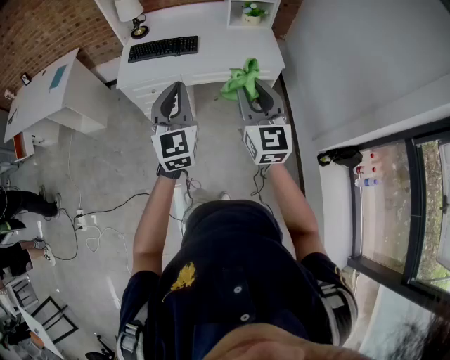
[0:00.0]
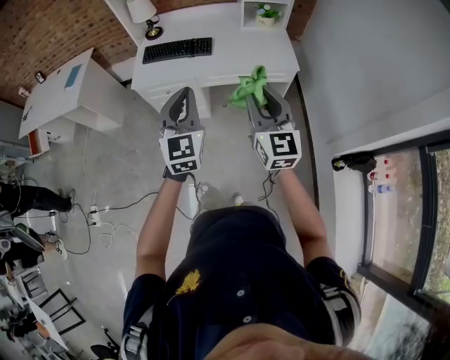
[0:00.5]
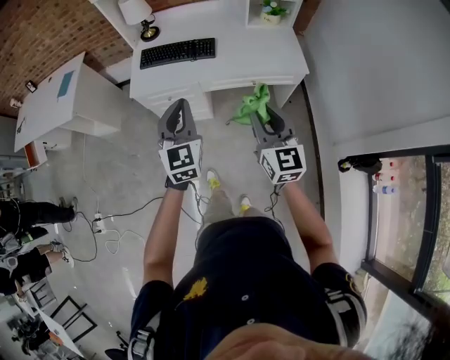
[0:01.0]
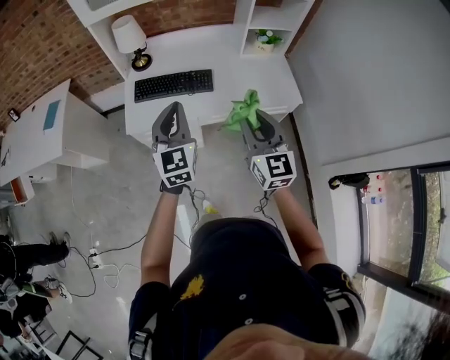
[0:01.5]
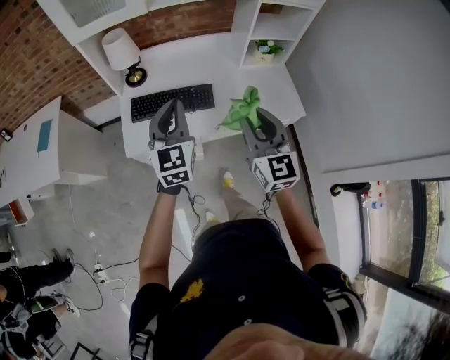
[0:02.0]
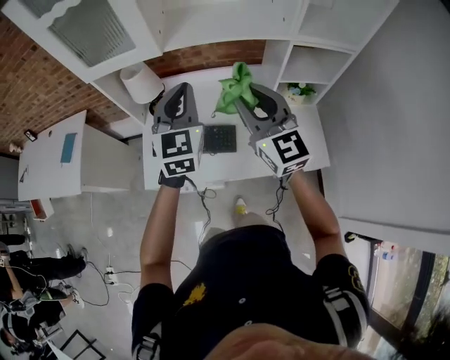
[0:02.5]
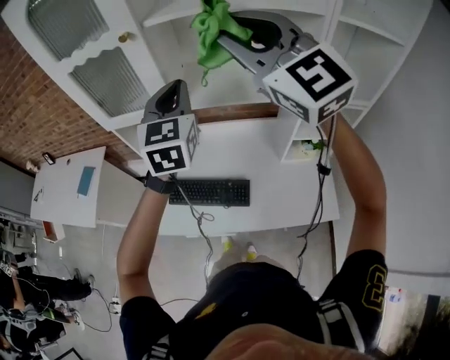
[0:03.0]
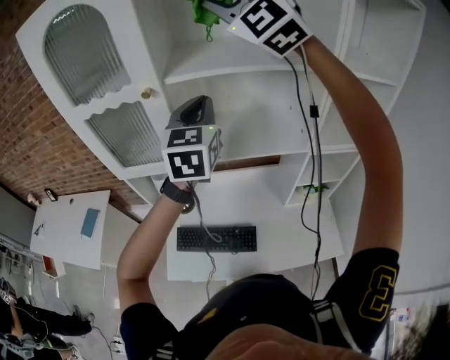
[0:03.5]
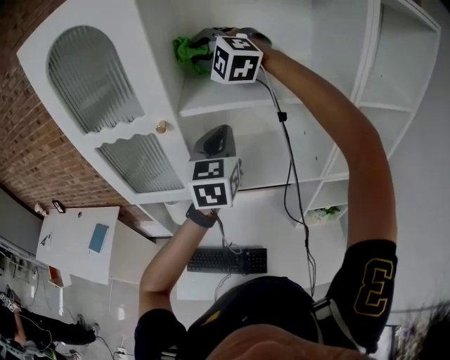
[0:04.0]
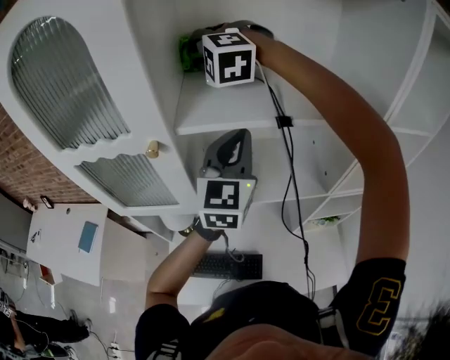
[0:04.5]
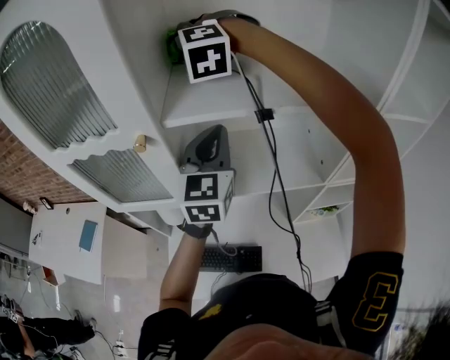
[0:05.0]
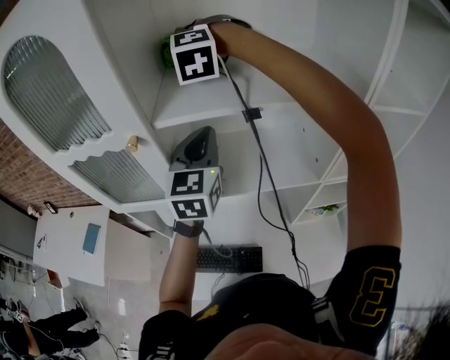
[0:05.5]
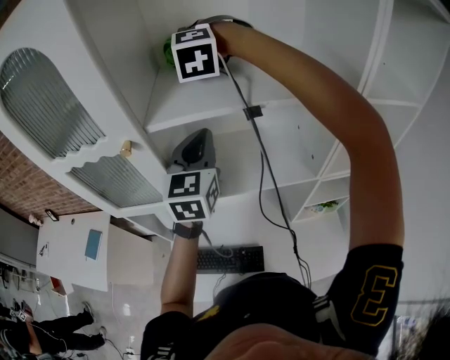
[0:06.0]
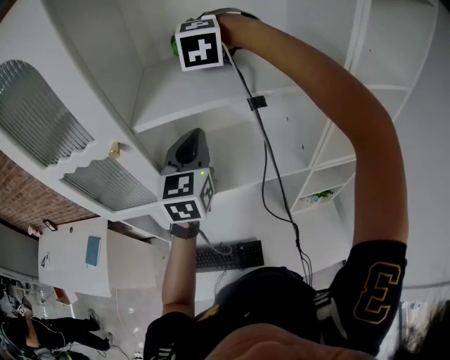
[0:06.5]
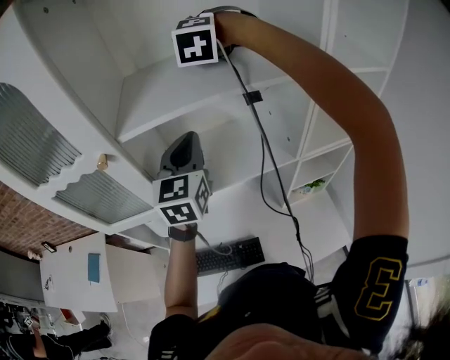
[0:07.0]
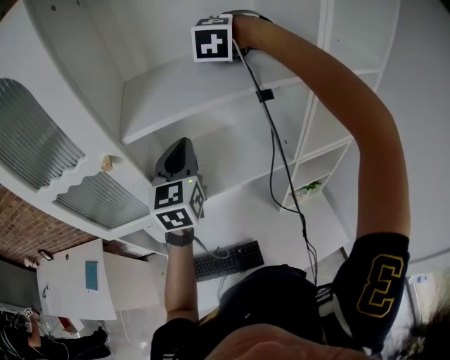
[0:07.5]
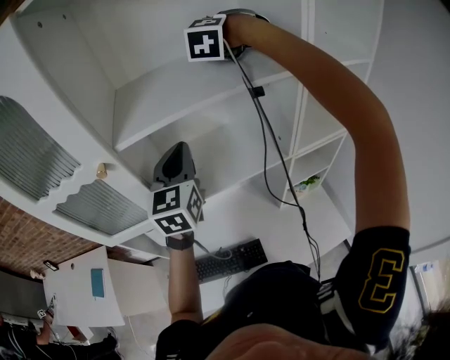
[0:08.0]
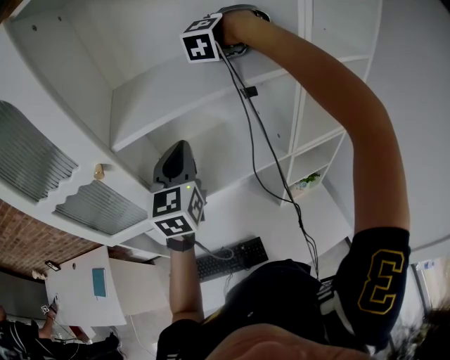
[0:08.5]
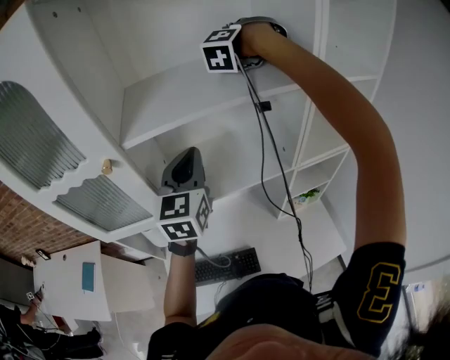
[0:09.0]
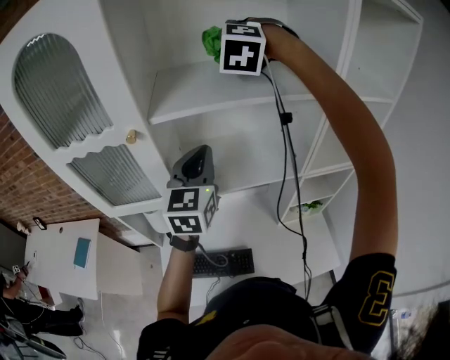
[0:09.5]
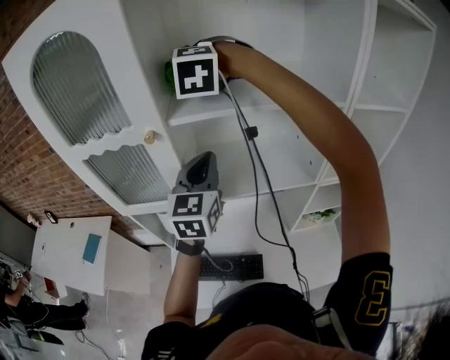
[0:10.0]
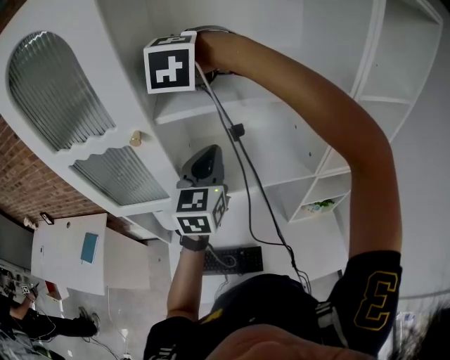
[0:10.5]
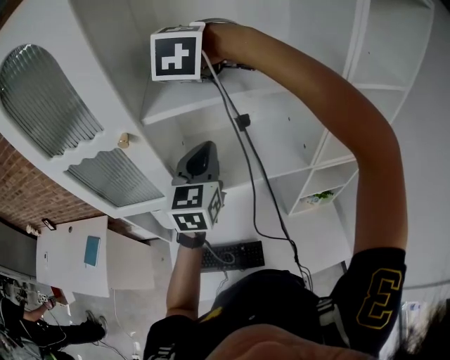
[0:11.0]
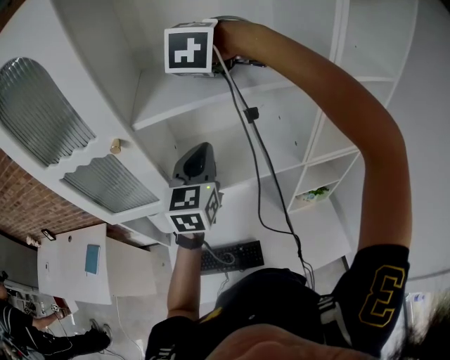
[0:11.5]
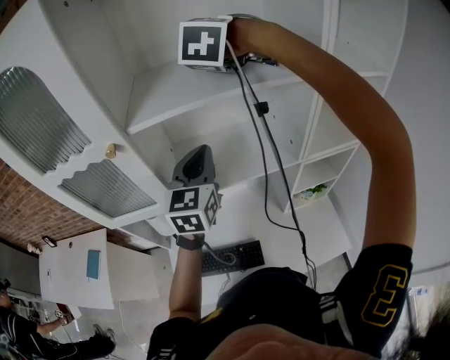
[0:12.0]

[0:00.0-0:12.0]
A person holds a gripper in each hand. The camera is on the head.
0:00.0 to 0:02.0: Both grippers travel together forward, about 35 cm.
0:02.0 to 0:04.0: The pair of grippers is taken forward, roughly 50 cm. The two grippers go some 35 cm upward. The right gripper rolls counterclockwise, seen from behind, by approximately 80 degrees.
0:04.0 to 0:06.0: The left gripper shifts by about 5 cm. The right gripper goes some 10 cm forward and downward, and turns by approximately 20 degrees.
0:06.0 to 0:08.0: The right gripper travels to the right by roughly 20 cm, and swivels some 30 degrees.
0:08.0 to 0:10.0: The left gripper shifts by approximately 5 cm; the right gripper changes place by some 25 cm, and changes its angle by approximately 40 degrees.
0:10.0 to 0:12.0: The right gripper shifts roughly 20 cm to the right, and changes its angle by approximately 30 degrees; the left gripper travels to the right by roughly 5 cm.

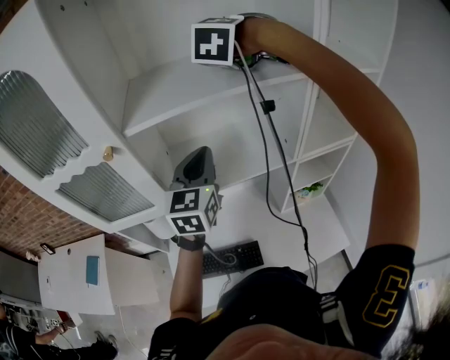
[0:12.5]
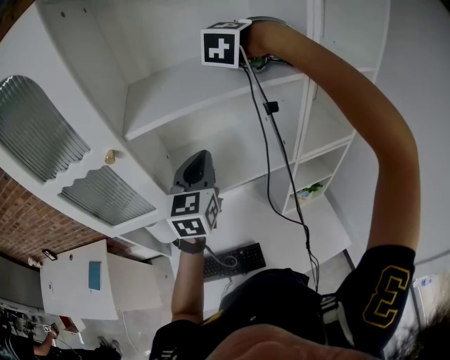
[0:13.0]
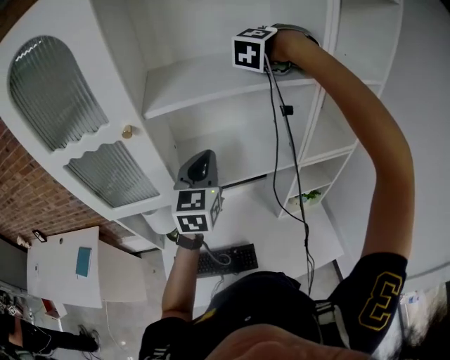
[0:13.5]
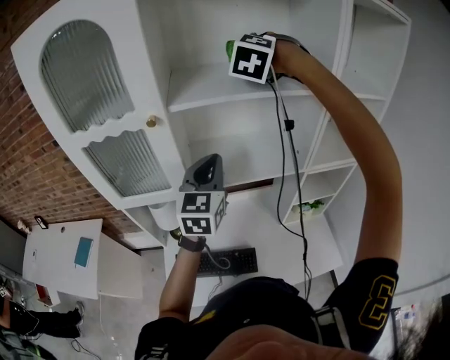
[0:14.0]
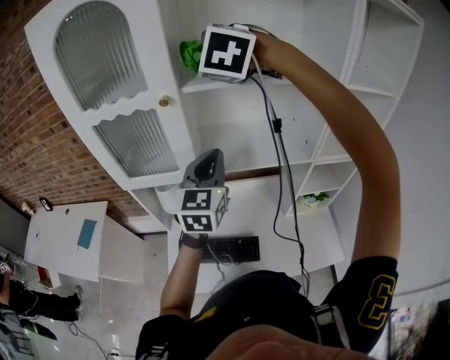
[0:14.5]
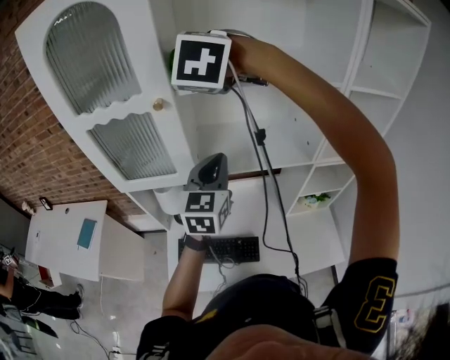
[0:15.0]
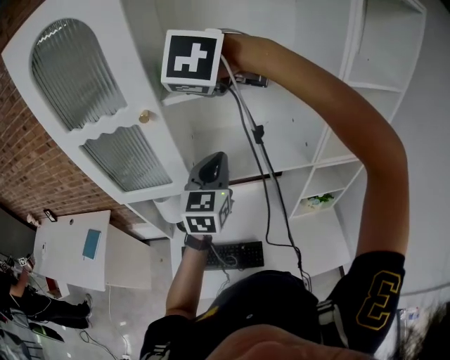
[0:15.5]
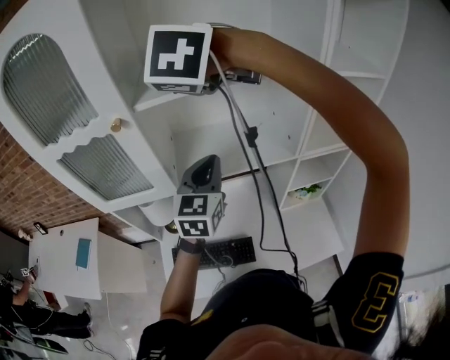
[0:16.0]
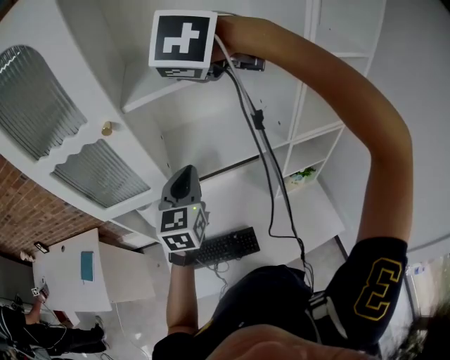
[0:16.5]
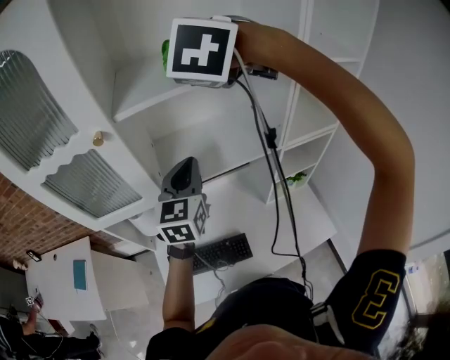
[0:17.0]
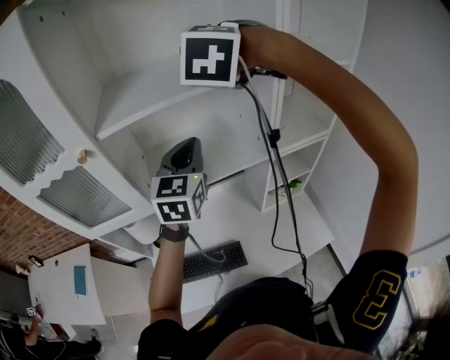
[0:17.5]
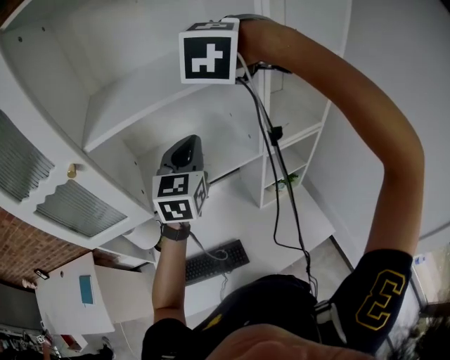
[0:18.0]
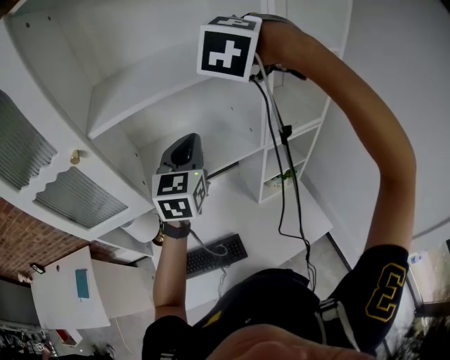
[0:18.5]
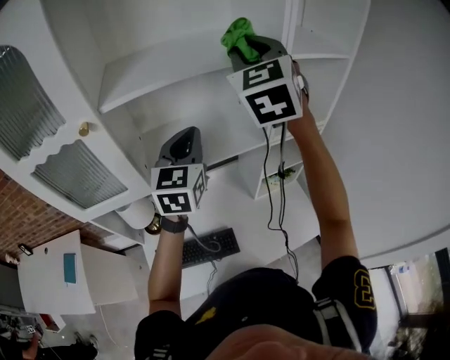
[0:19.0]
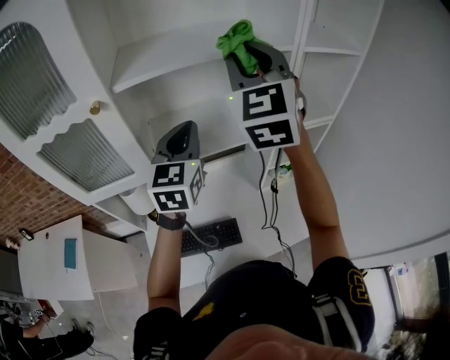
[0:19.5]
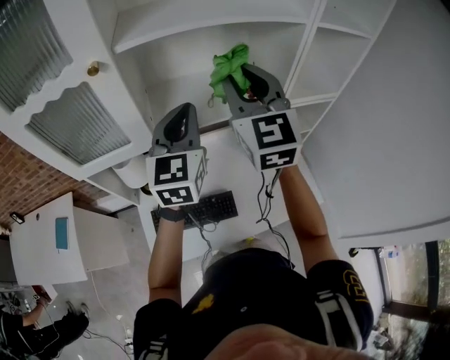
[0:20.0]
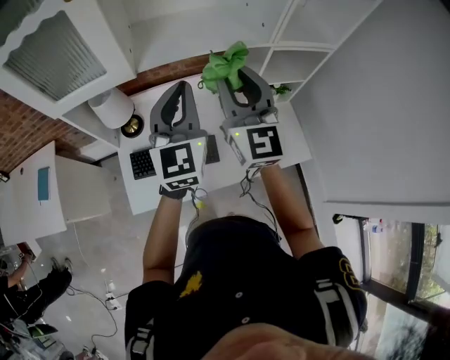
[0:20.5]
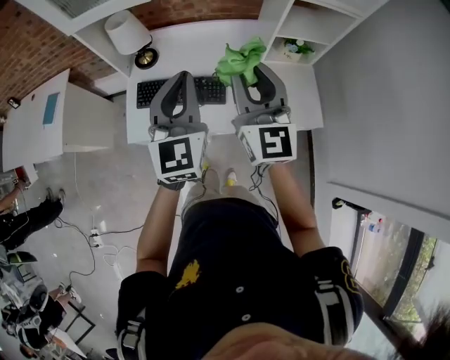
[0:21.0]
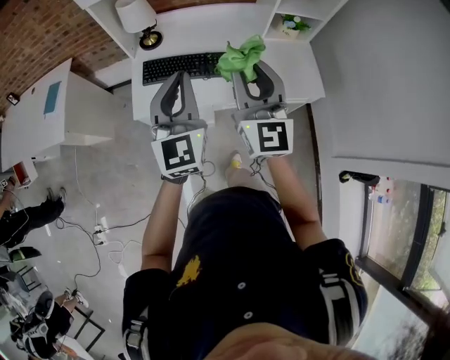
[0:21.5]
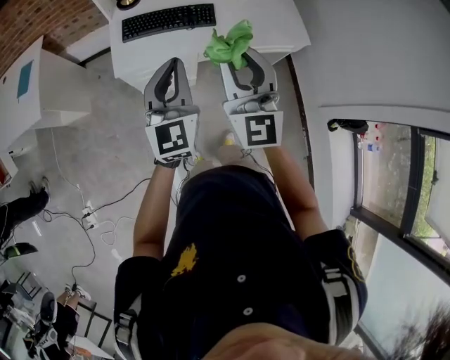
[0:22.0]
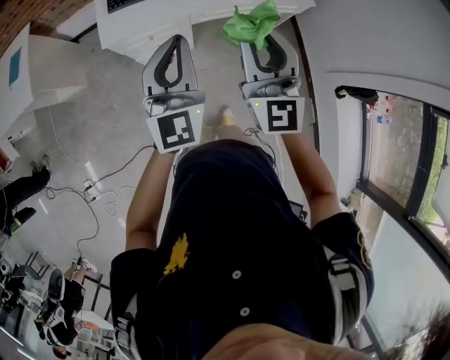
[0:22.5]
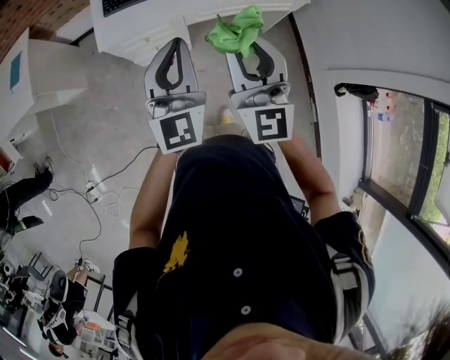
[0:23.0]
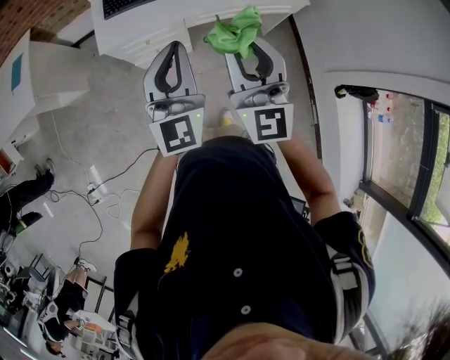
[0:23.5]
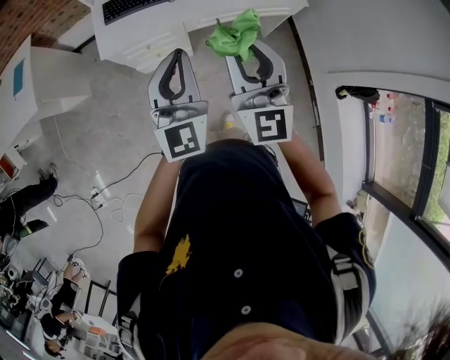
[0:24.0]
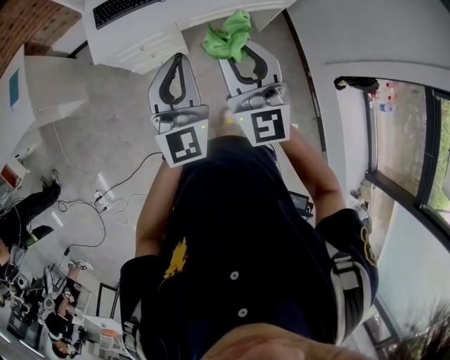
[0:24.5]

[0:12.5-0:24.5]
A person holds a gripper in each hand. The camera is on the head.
0:12.5 to 0:14.5: The left gripper changes place by some 10 cm. The right gripper changes place by approximately 25 cm, and swivels roughly 30 degrees.
0:14.5 to 0:16.5: The right gripper moves to the right, about 5 cm, while the left gripper travels downward by about 5 cm.
0:16.5 to 0:18.5: The left gripper travels to the right, forward and upward by roughly 15 cm, while the right gripper shifts about 20 cm to the right, and turns by approximately 30 degrees.
0:18.5 to 0:20.5: The right gripper shifts about 35 cm downward and backward, and points its fingers some 40 degrees further upward; the left gripper shifts about 20 cm backward and downward.
0:20.5 to 0:22.5: The pair of grippers is taken backward, some 50 cm.
0:22.5 to 0:24.5: The grippers stay close to where they were, moving slightly.

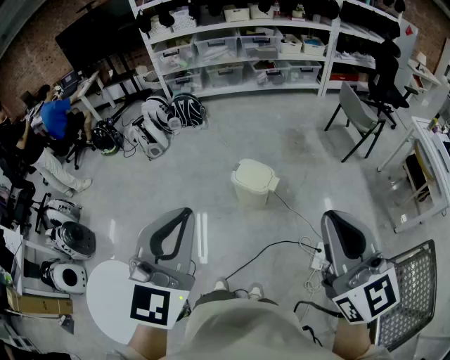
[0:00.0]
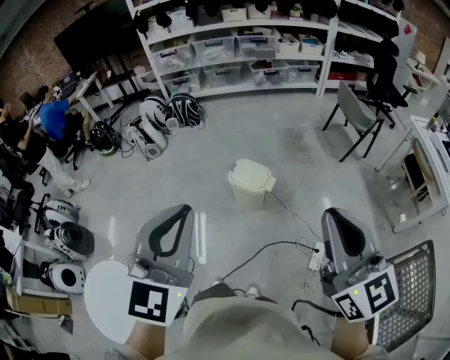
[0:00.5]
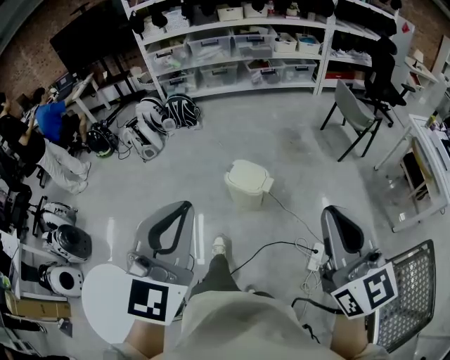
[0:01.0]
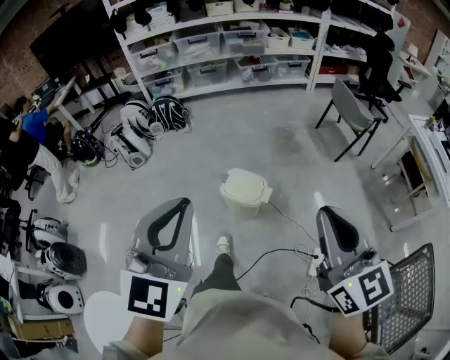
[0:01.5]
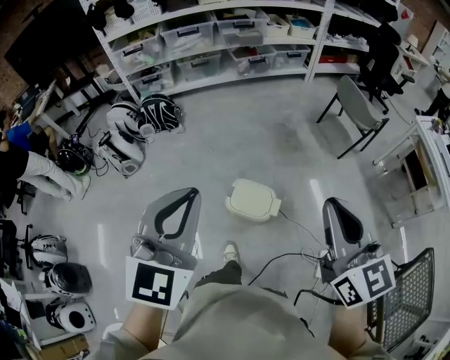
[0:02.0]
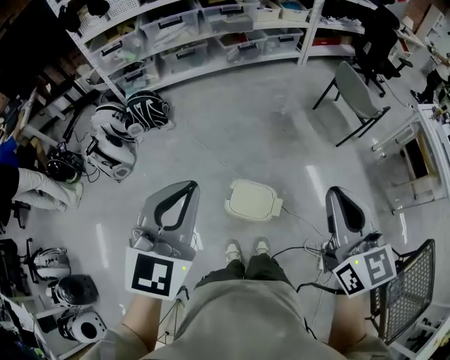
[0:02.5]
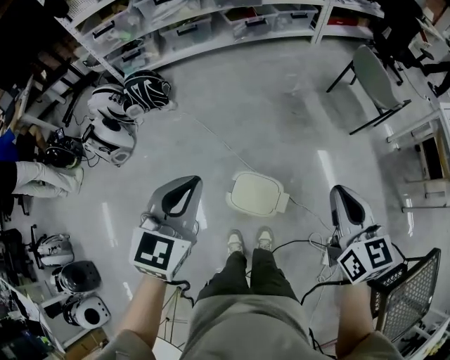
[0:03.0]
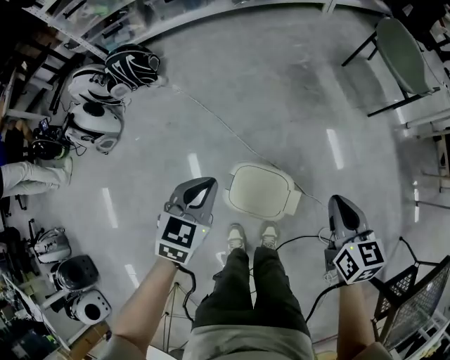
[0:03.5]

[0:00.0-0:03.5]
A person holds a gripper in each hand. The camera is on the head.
0:00.0 to 0:02.0: The grippers both shift forward by some 35 cm.
0:02.0 to 0:03.5: Both grippers travel together downward and forward, roughly 50 cm. The right gripper changes its angle by about 30 degrees; the left gripper turns by some 30 degrees.
